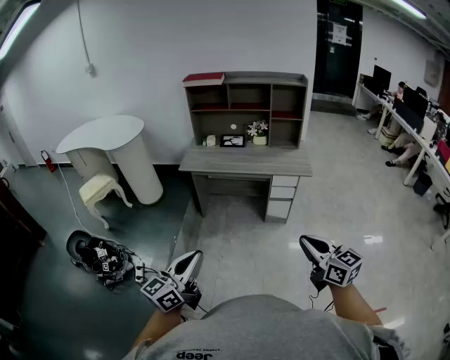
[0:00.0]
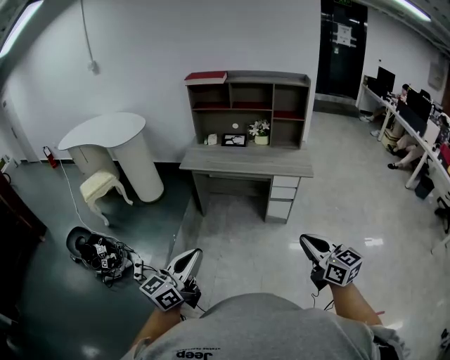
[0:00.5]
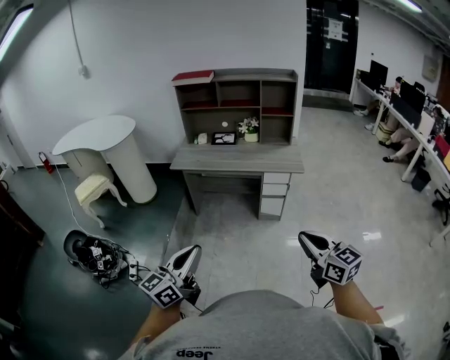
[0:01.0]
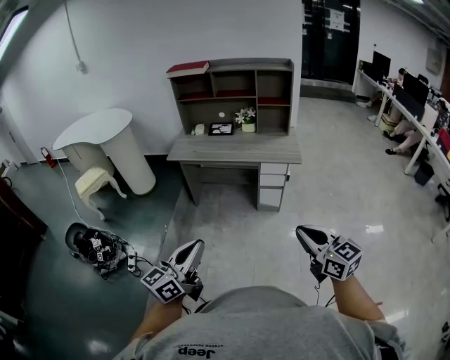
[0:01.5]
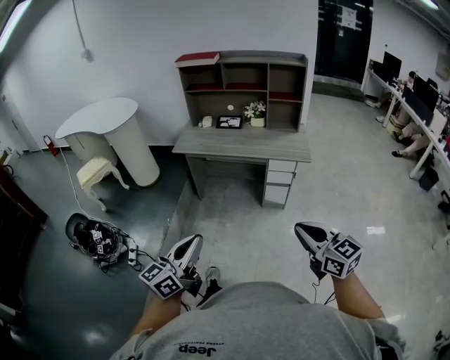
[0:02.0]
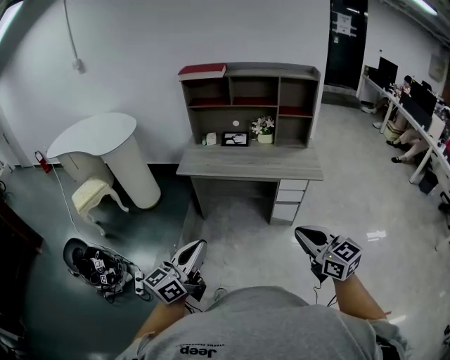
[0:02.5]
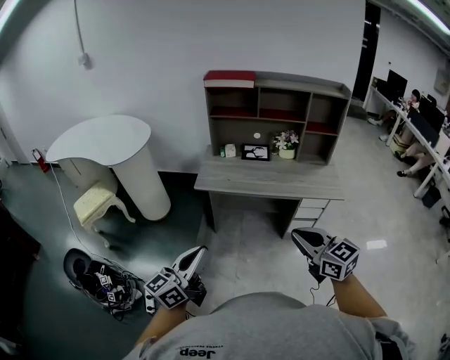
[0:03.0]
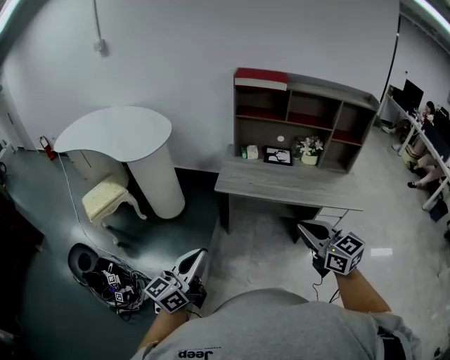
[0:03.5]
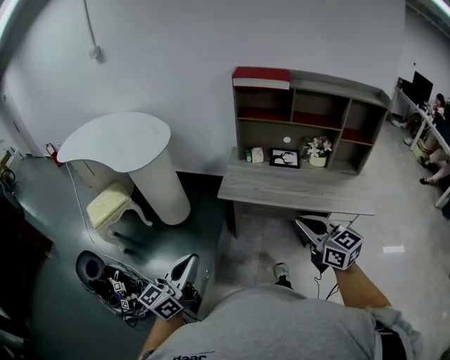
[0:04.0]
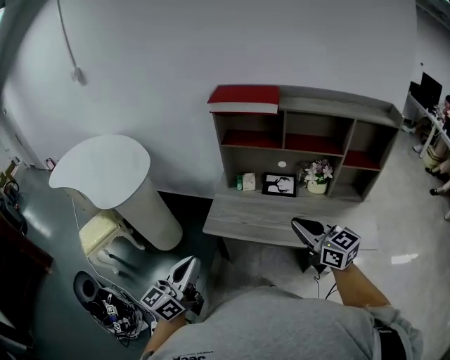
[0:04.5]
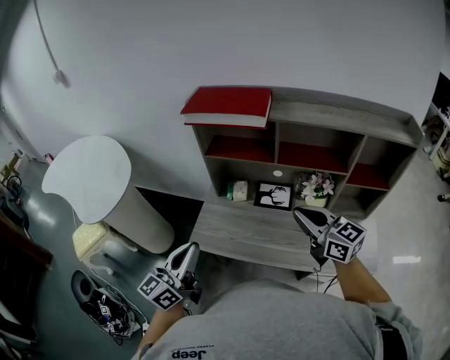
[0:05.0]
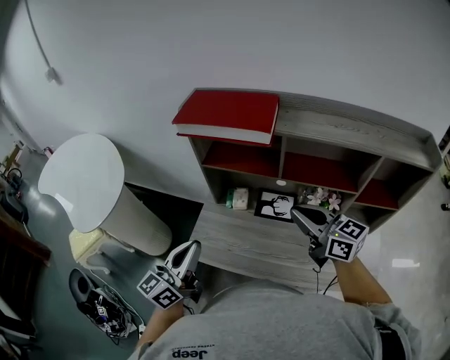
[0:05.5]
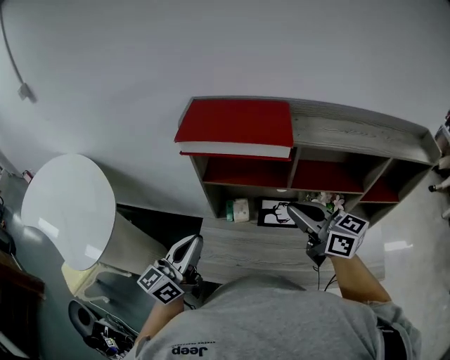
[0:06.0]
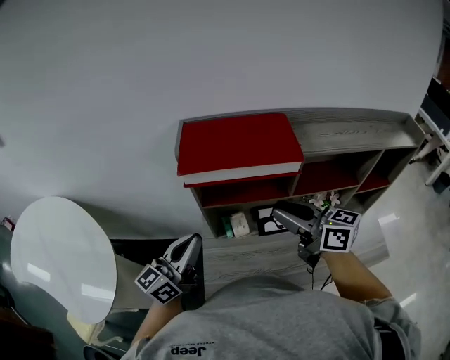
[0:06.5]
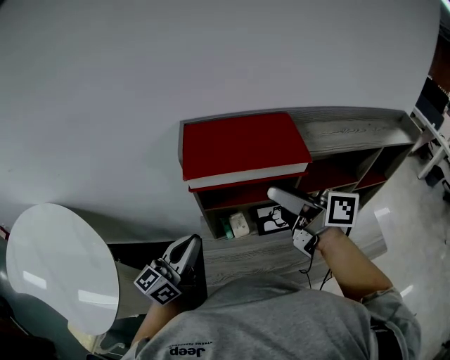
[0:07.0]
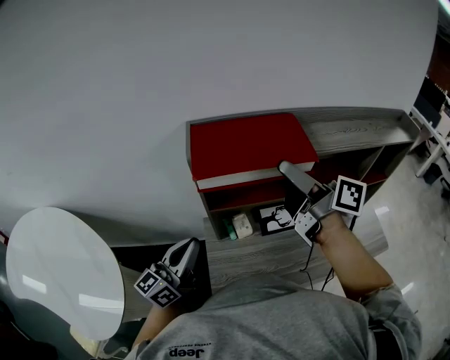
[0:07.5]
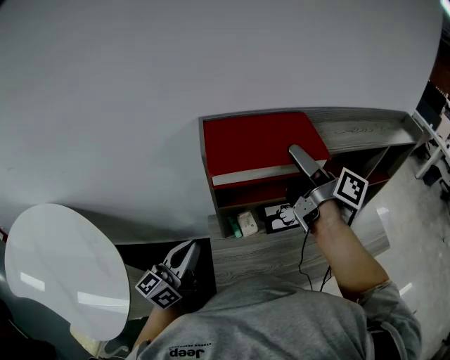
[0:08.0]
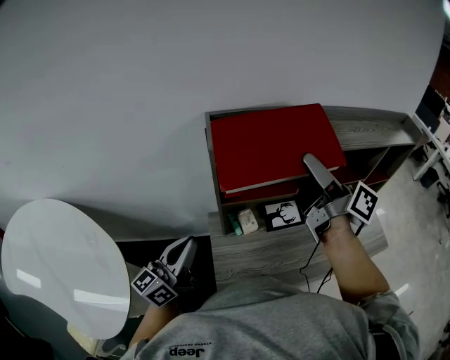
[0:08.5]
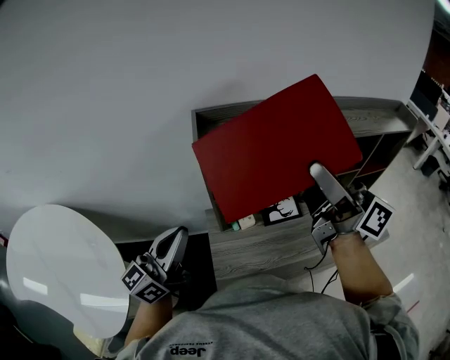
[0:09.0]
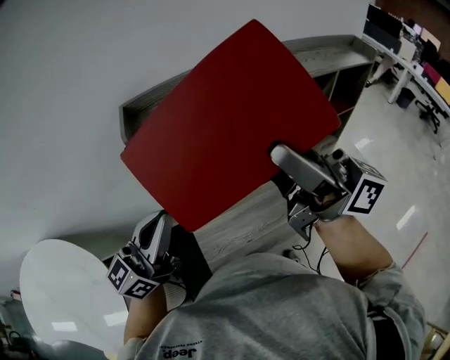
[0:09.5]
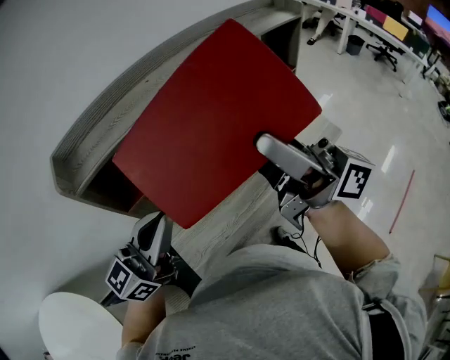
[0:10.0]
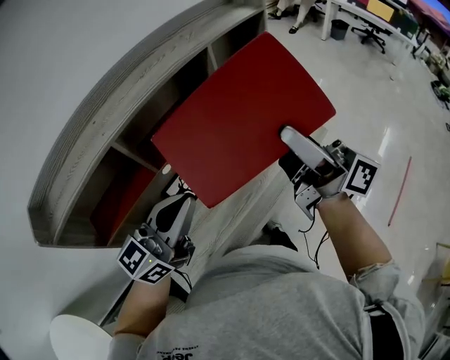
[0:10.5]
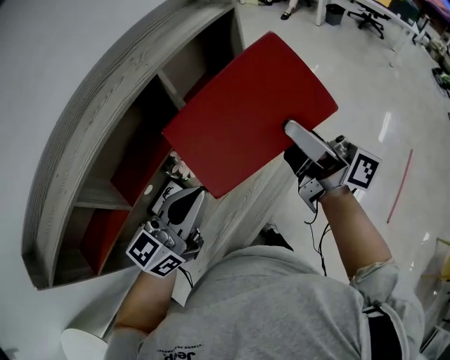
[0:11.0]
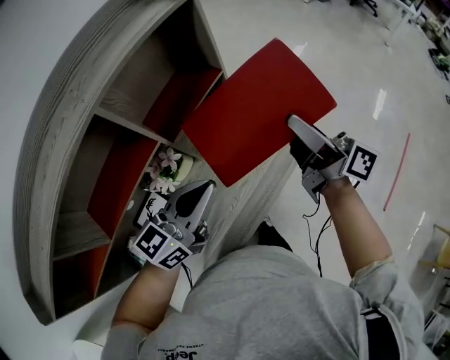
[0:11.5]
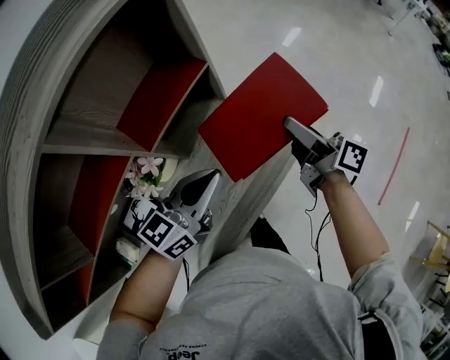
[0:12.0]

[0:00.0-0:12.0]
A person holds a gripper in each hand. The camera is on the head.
0:00.0 to 0:02.0: The left gripper heads to the right, covering some 10 cm; the right gripper is displaced to the right by some 5 cm.
0:02.0 to 0:04.0: Both grippers are carried forward and to the left, some 50 cm.
0:04.0 to 0:06.0: The two grippers travel together, forward, approximately 50 cm.
0:06.0 to 0:08.0: The left gripper goes about 15 cm to the left and forward. Meanwhile the right gripper shifts approximately 15 cm forward, upward and to the left, rotates about 60 degrees, and opens up.
0:08.0 to 0:10.0: The left gripper moves to the right, roughly 20 cm, and turns by approximately 40 degrees; the right gripper goes approximately 25 cm to the right and backward, and turns by roughly 40 degrees.
0:10.0 to 0:12.0: Both grippers are carried to the right and forward, some 40 cm. The left gripper moves downward, roughly 15 cm, and turns by roughly 30 degrees; the right gripper shifts about 30 cm downward, and points its fingers approximately 30 degrees further downward.

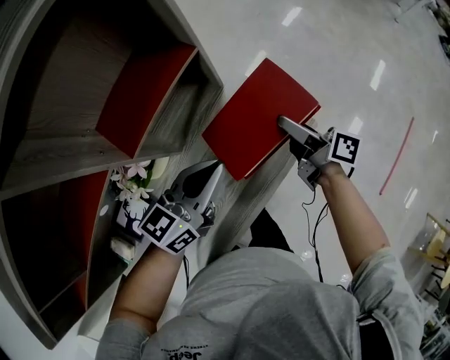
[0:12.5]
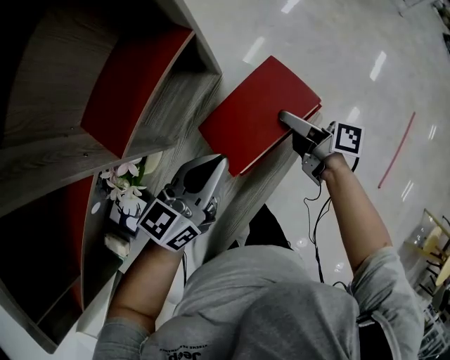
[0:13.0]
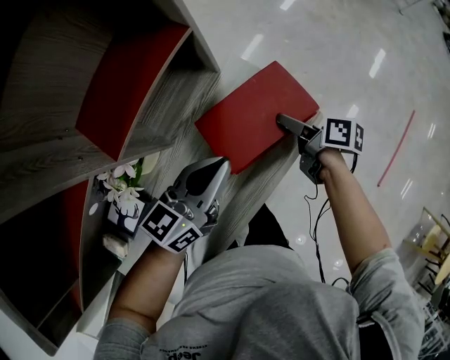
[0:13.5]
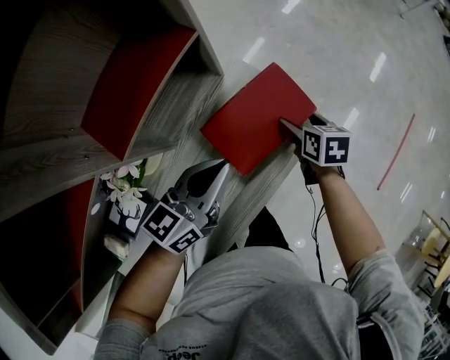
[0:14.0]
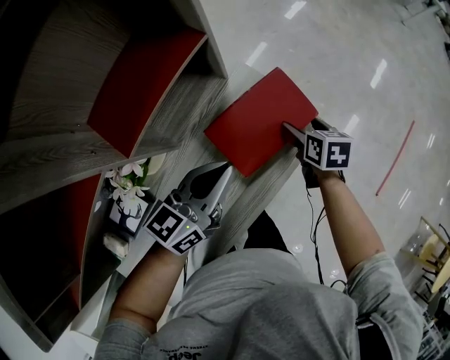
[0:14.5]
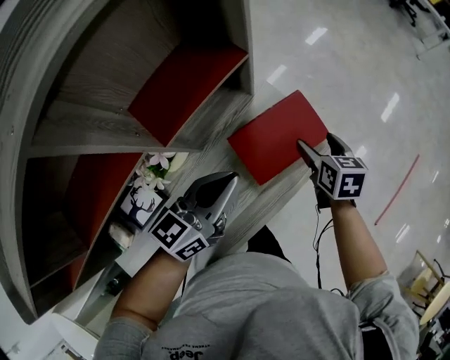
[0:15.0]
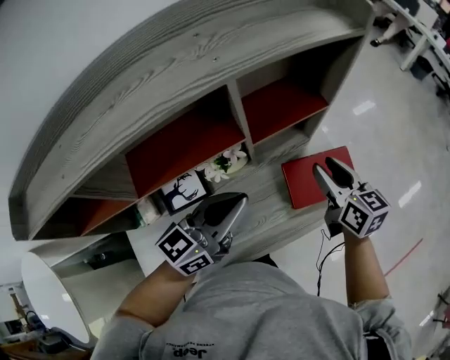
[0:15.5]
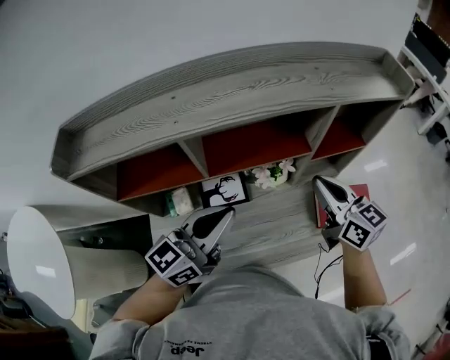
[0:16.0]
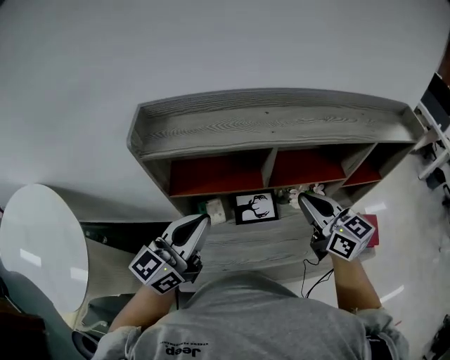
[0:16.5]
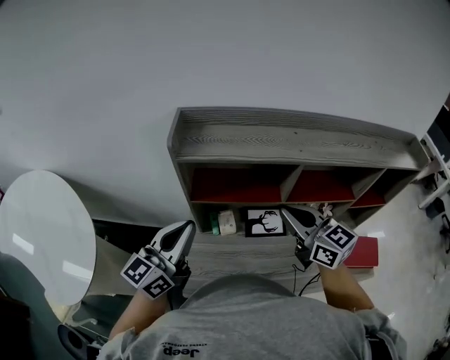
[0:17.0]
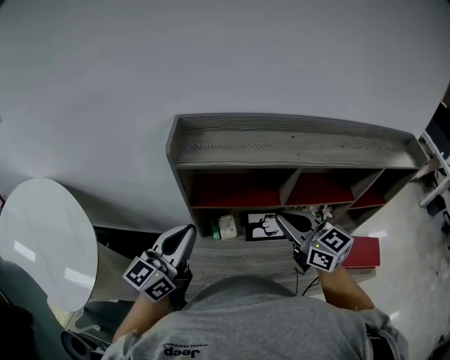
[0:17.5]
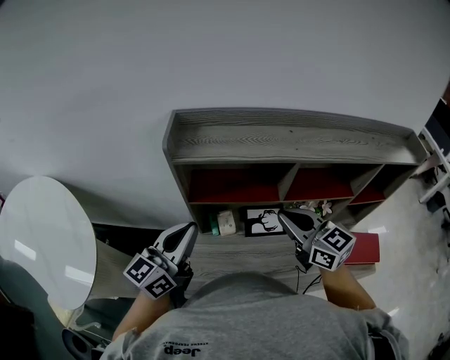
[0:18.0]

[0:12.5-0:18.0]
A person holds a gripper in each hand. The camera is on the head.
0:12.5 to 0:14.5: The right gripper heads downward, covering approximately 10 cm, tilts its fingers about 40 degrees downward, and opens its fingers.
0:14.5 to 0:16.0: The left gripper changes place by roughly 40 cm, and rotates about 40 degrees. Meanwhile the right gripper is displaced upward by approximately 35 cm, points its fingers some 40 degrees further upward, and closes up.
0:16.0 to 0:18.0: Both grippers move to the left, some 30 cm. The right gripper changes its angle by about 30 degrees, while the left gripper swivels about 20 degrees.

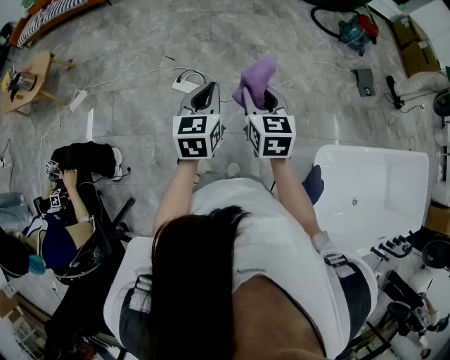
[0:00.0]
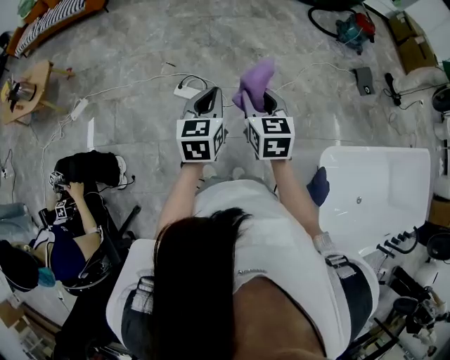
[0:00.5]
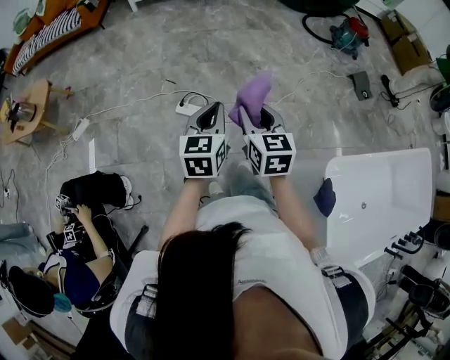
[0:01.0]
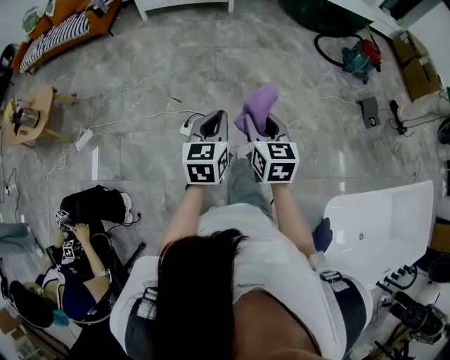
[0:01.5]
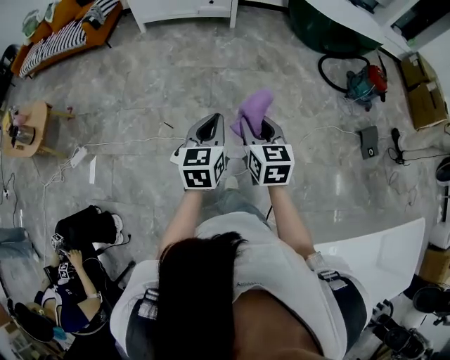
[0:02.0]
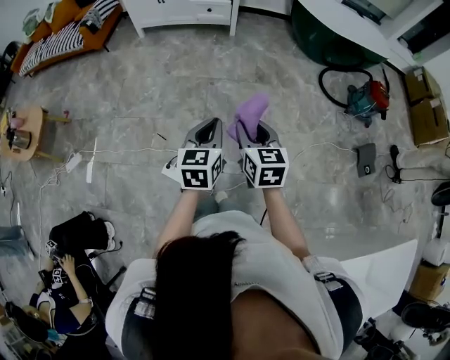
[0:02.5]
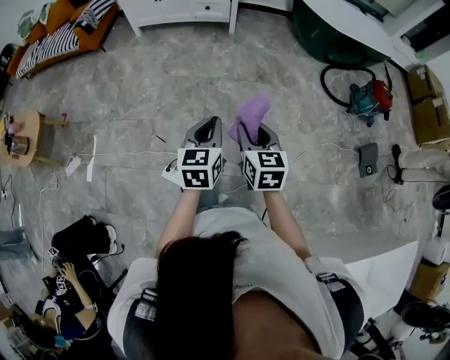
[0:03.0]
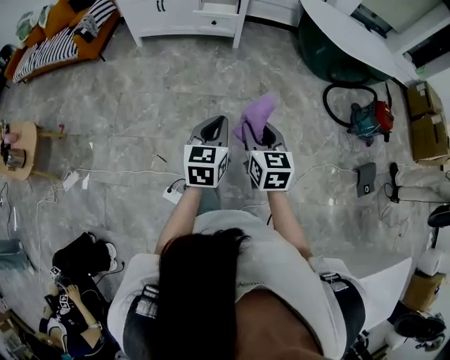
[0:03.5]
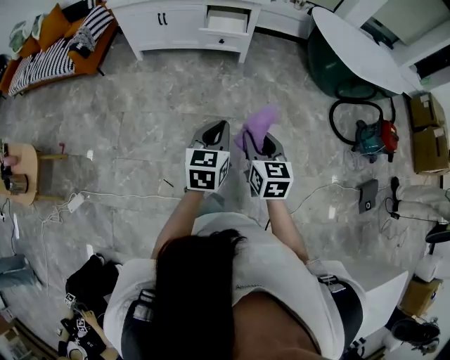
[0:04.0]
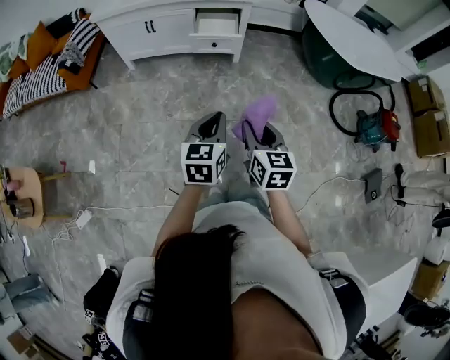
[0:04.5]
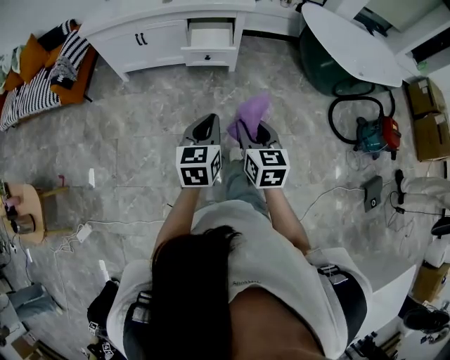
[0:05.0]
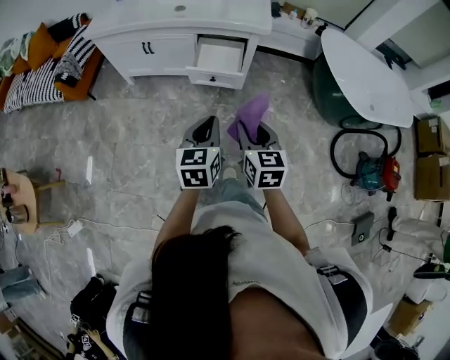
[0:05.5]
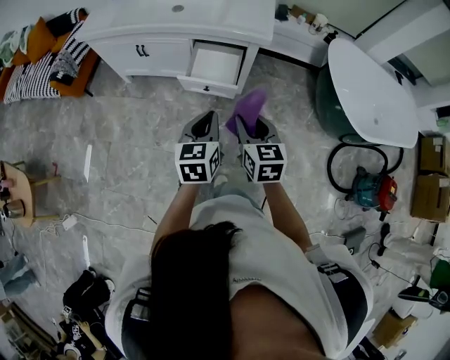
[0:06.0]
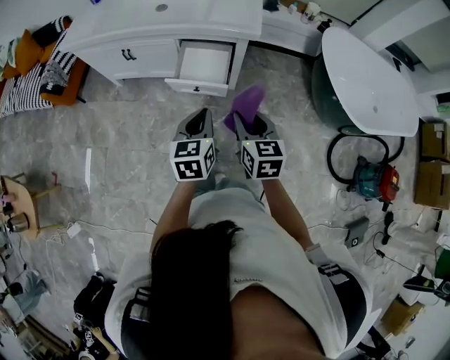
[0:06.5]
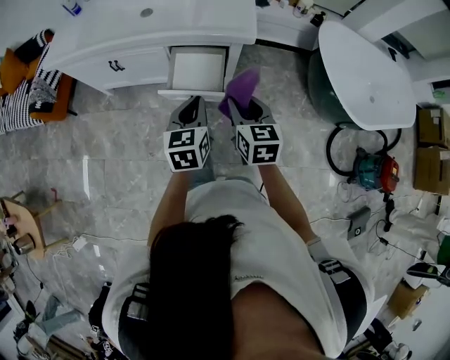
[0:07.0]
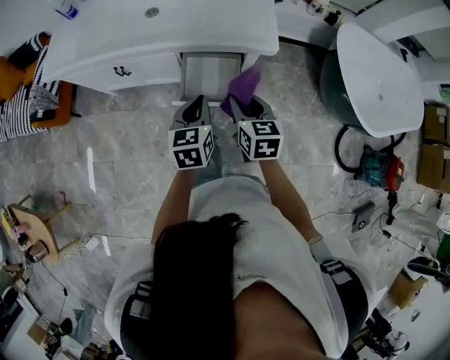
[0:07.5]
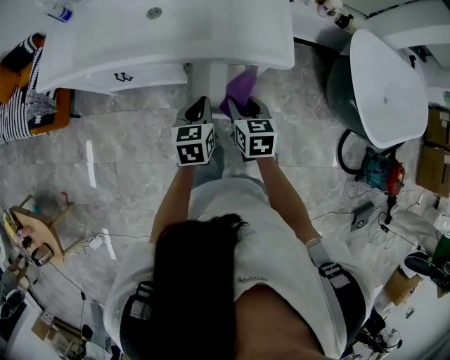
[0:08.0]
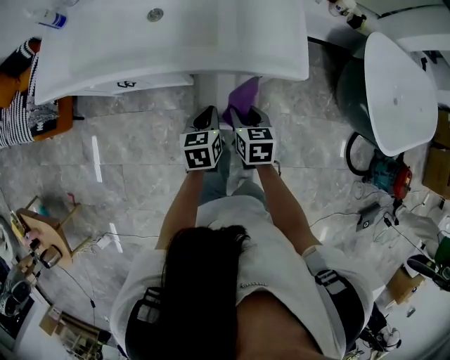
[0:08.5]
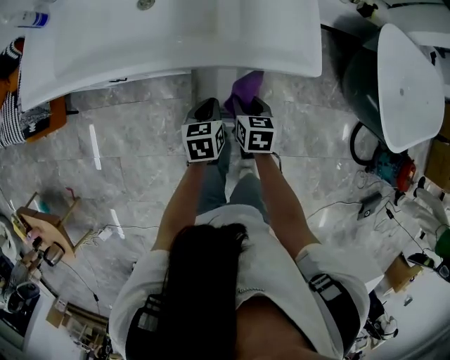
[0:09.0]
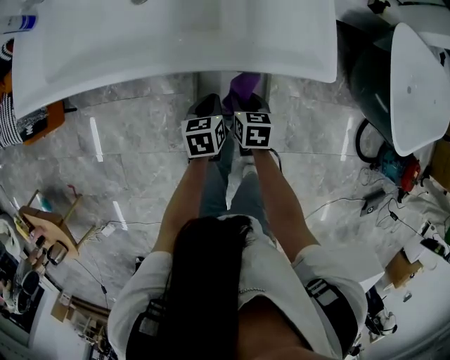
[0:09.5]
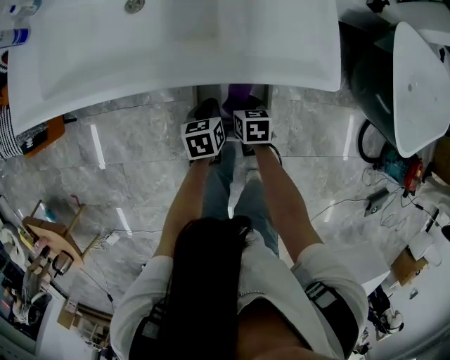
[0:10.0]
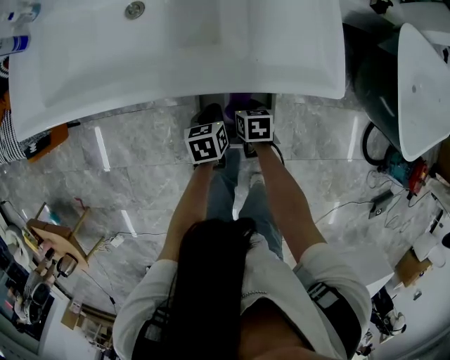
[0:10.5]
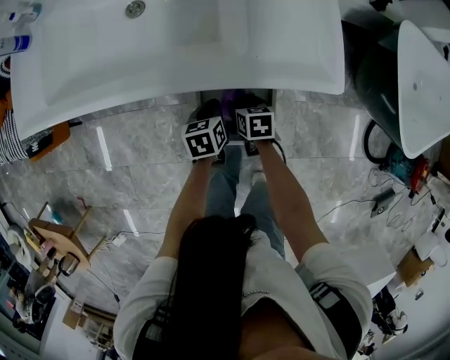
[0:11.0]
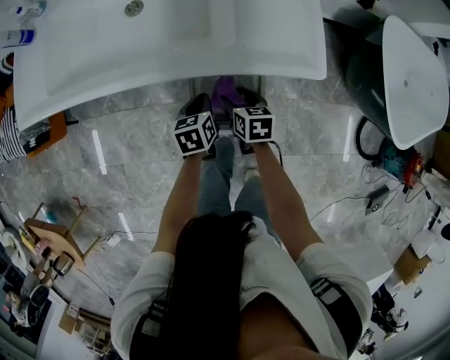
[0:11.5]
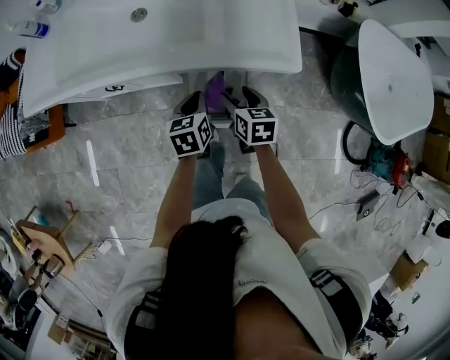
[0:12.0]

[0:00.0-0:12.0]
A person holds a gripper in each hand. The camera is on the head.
0:00.0 to 0:02.0: The two grippers go about 35 cm forward.
0:02.0 to 0:04.0: The two grippers travel together, forward, about 50 cm.
0:04.0 to 0:06.0: Both grippers are carried forward, some 50 cm.
0:06.0 to 0:08.0: The left gripper heads forward, covering about 30 cm; the right gripper is displaced forward and downward by approximately 30 cm.
0:08.0 to 0:10.0: Both grippers move downward, some 20 cm. The right gripper swivels some 20 degrees.
0:10.0 to 0:12.0: The two grippers go approximately 15 cm upward. The right gripper opens up.